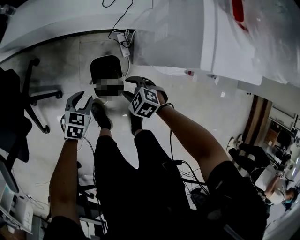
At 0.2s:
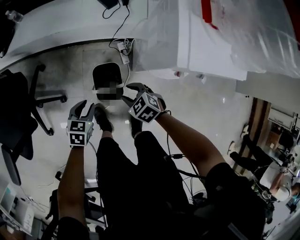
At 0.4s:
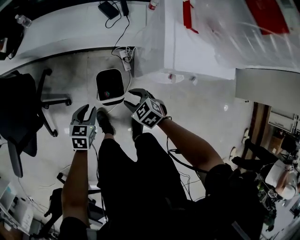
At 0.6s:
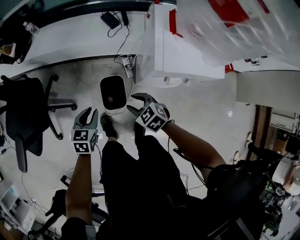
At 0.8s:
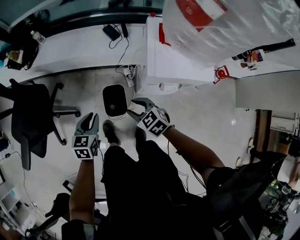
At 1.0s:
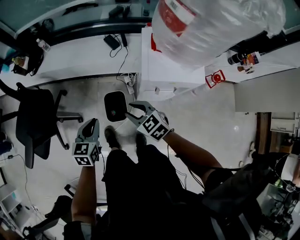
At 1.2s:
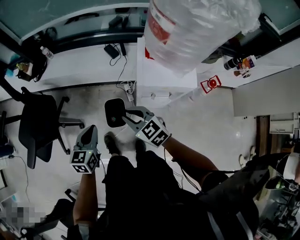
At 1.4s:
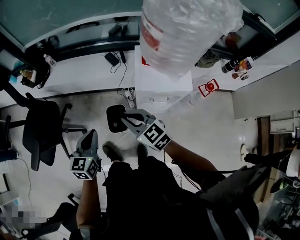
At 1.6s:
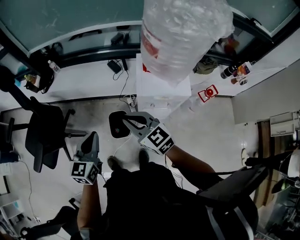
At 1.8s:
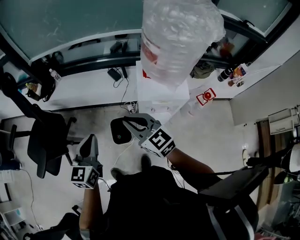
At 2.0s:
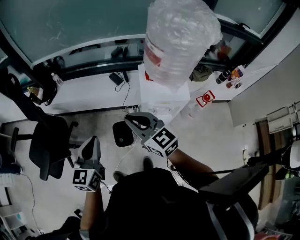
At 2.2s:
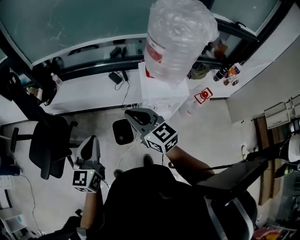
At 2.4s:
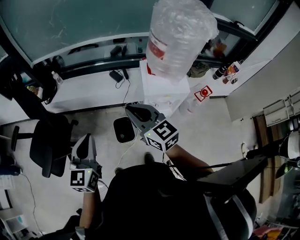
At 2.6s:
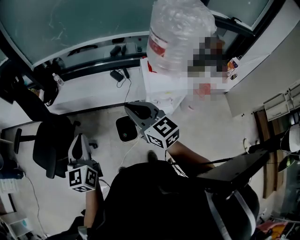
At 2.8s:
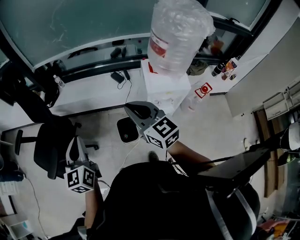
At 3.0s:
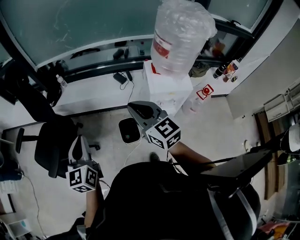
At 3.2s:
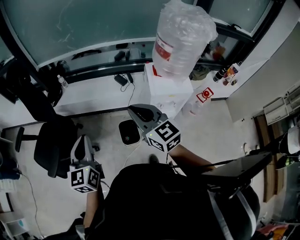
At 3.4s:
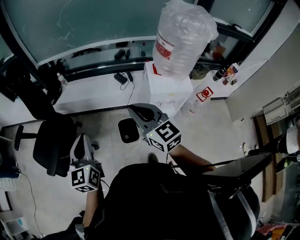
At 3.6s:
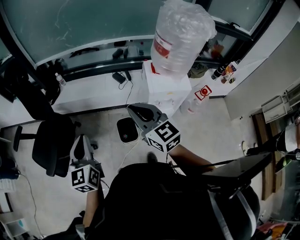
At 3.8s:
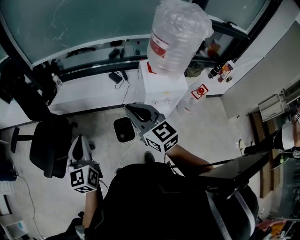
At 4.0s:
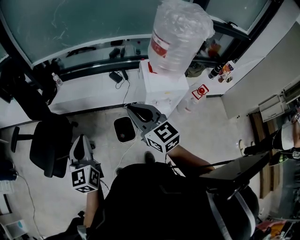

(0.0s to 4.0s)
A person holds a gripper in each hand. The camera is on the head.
0.0s - 1.4s: The grippers both shift upward by about 40 cm. The right gripper angles its fingers upward, by approximately 40 degrees, and closes; the left gripper tips its fingers upward by some 30 degrees, and closes up.
1.4s - 2.6s: Both grippers move upward and to the left, about 20 cm. The right gripper swivels roughly 20 degrees.
2.6s - 4.0s: The grippers make only small movements.

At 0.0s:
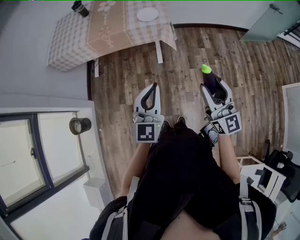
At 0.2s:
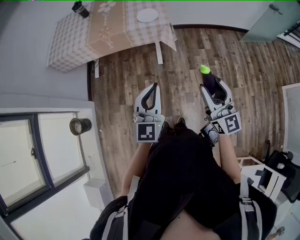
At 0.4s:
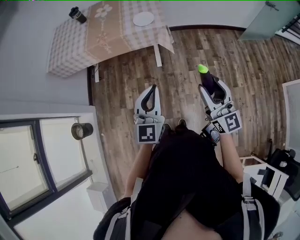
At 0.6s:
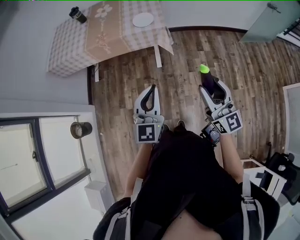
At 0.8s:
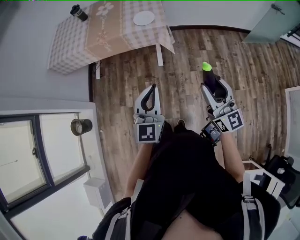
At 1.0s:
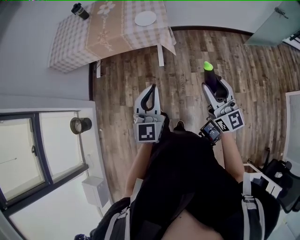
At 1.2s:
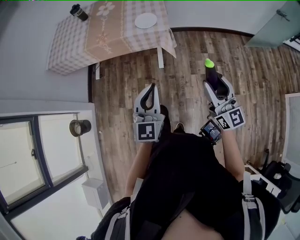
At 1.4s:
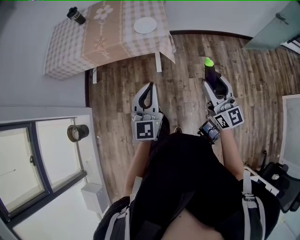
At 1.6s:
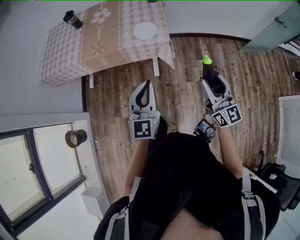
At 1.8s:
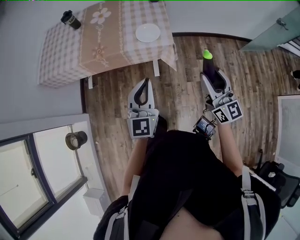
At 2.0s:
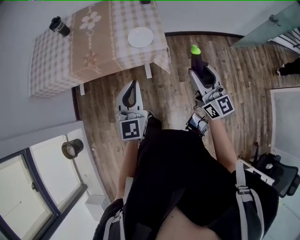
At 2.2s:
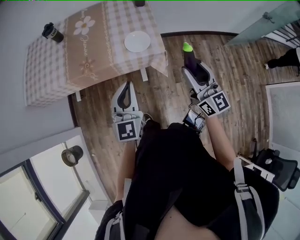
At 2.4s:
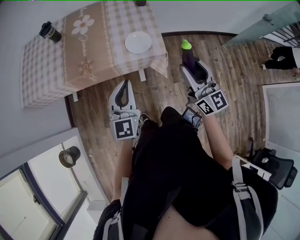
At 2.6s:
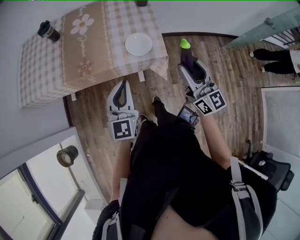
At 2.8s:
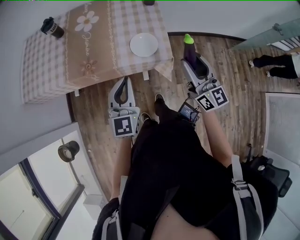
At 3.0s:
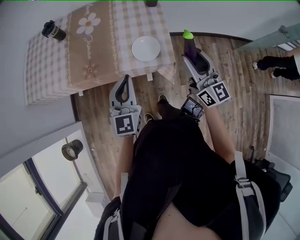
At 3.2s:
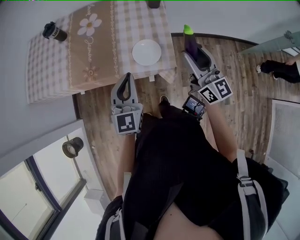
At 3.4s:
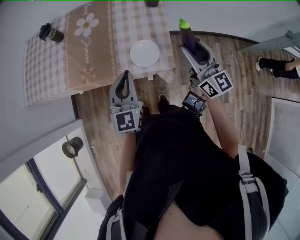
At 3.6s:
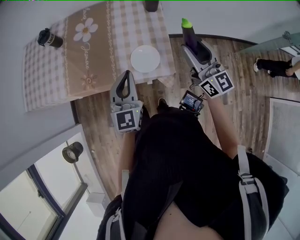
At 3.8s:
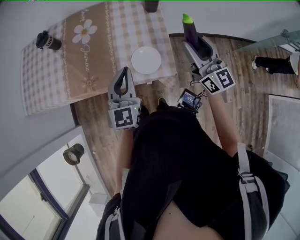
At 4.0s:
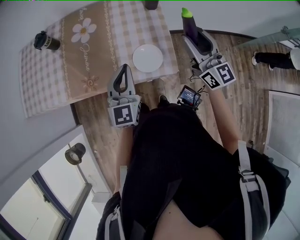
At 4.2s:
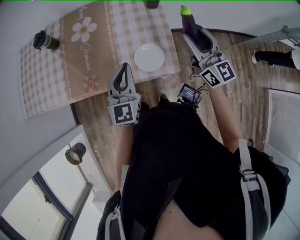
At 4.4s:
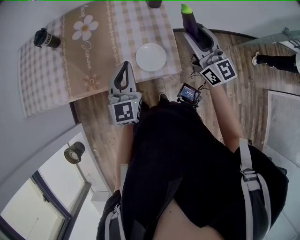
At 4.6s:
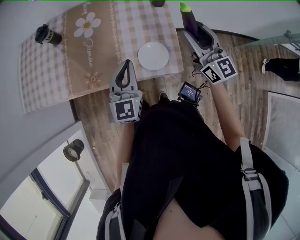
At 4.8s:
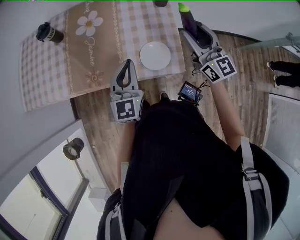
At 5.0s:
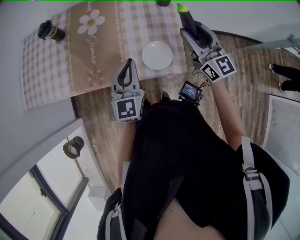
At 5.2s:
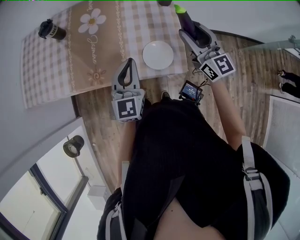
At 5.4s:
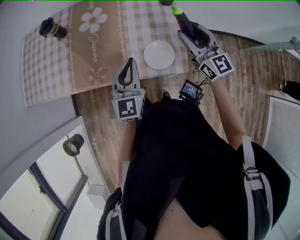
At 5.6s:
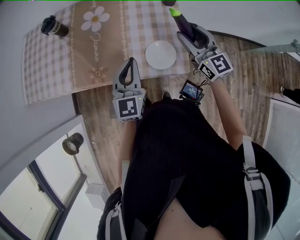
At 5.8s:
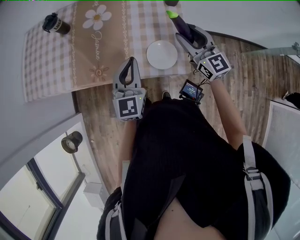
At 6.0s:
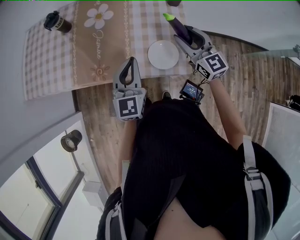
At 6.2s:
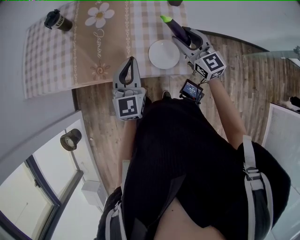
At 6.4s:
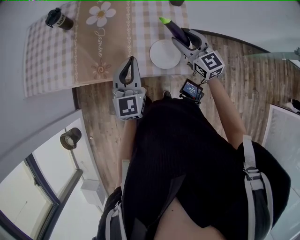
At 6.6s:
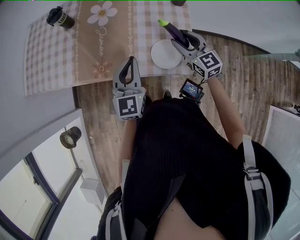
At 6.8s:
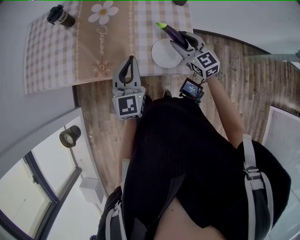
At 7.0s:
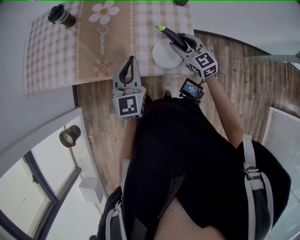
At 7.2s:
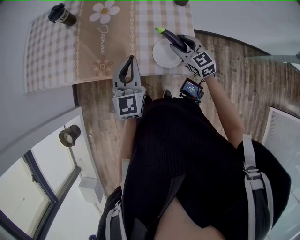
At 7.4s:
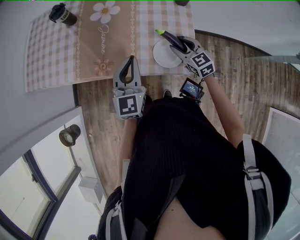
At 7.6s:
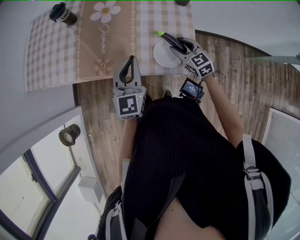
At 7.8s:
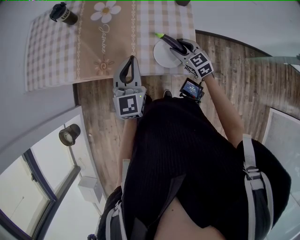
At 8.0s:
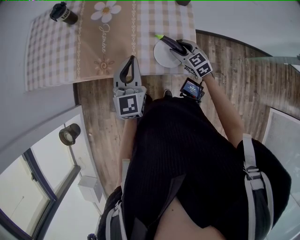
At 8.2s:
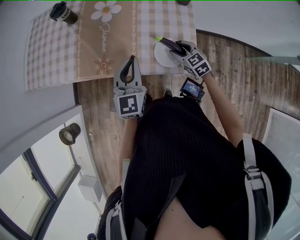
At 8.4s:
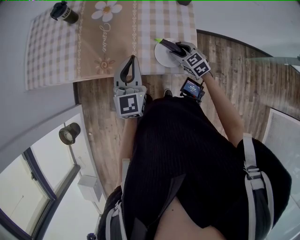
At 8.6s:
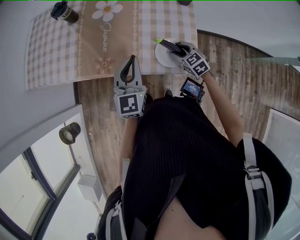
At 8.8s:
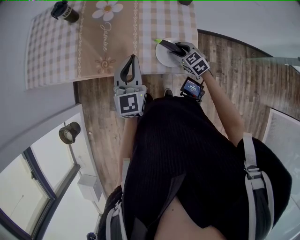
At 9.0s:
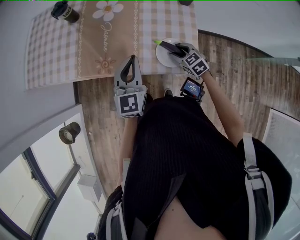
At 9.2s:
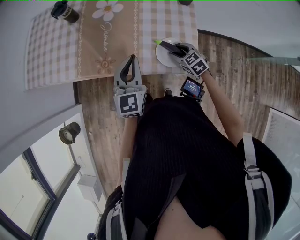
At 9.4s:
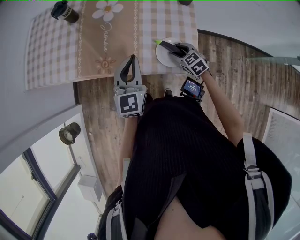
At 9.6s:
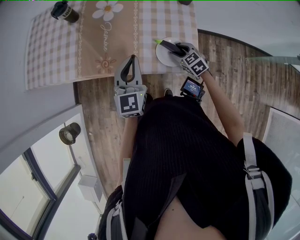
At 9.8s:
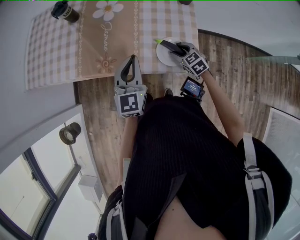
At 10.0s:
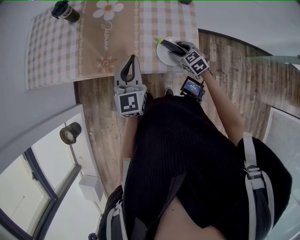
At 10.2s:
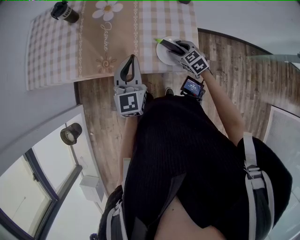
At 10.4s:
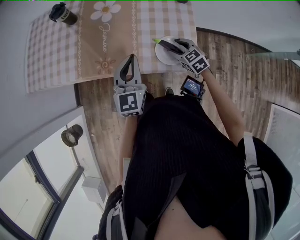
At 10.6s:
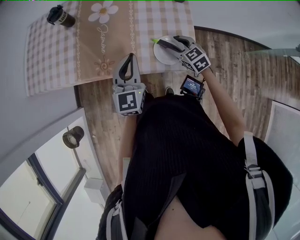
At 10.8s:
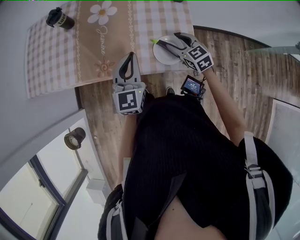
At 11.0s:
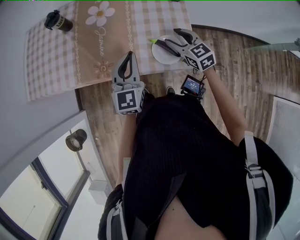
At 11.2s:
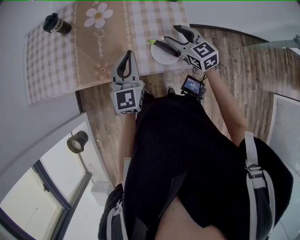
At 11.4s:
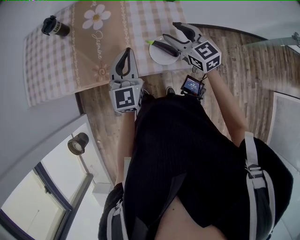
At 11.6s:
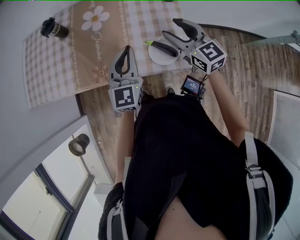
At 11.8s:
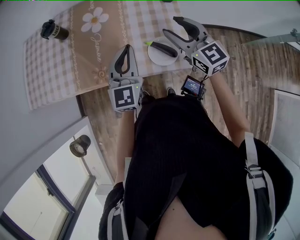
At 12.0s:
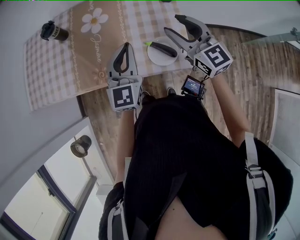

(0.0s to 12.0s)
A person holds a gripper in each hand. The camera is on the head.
0.0s - 1.6s: Both grippers travel together forward, about 20 cm.
1.6s - 3.0s: Both grippers travel together forward, some 30 cm.
3.0s - 4.4s: Both grippers move forward, about 15 cm.
4.4s - 6.0s: The right gripper shifts roughly 10 cm downward and to the left.
6.0s - 7.6s: The right gripper is displaced downward by some 15 cm, and changes its angle by about 20 degrees.
7.6s - 9.0s: The right gripper is displaced downward by about 5 cm.
9.0s - 10.4s: The grippers make only small movements.
10.4s - 12.0s: The right gripper moves upward, roughly 25 cm, and angles its fingers upward, by some 40 degrees, while the left gripper moves upward, roughly 5 cm.

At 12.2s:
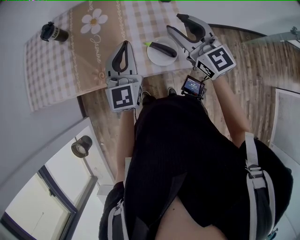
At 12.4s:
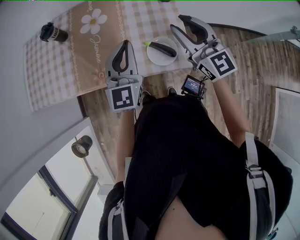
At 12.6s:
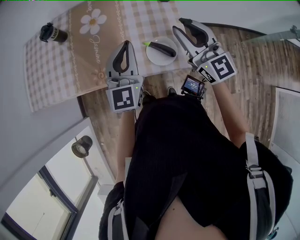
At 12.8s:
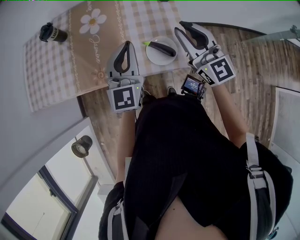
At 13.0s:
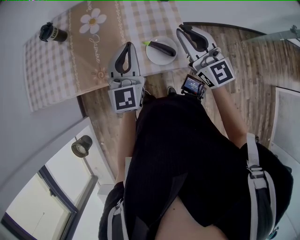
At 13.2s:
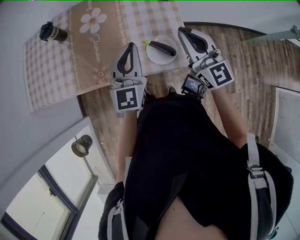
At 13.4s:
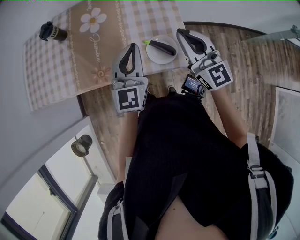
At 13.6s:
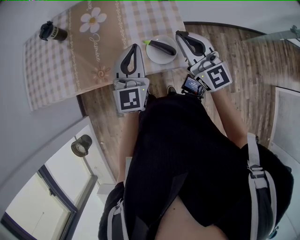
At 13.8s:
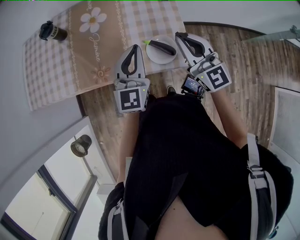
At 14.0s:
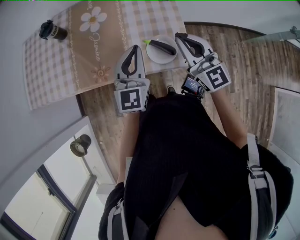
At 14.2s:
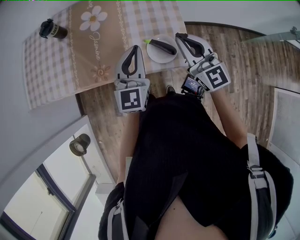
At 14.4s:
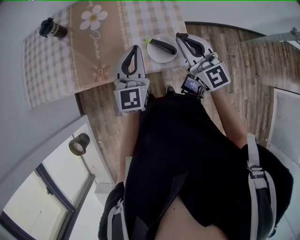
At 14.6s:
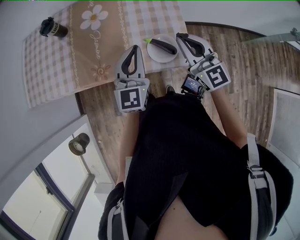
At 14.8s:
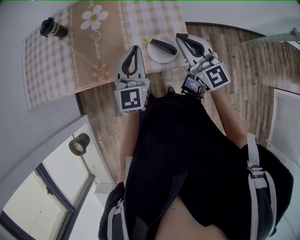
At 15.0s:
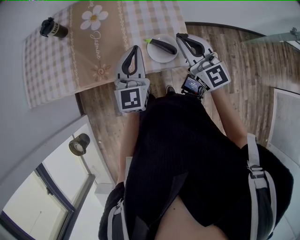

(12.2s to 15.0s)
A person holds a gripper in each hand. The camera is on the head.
12.2s - 13.6s: The right gripper closes up.
13.6s - 15.0s: The grippers make only small movements.

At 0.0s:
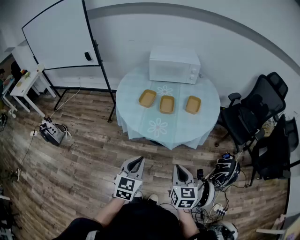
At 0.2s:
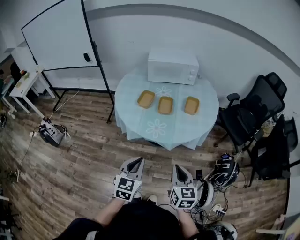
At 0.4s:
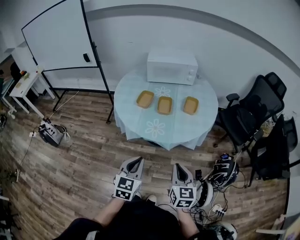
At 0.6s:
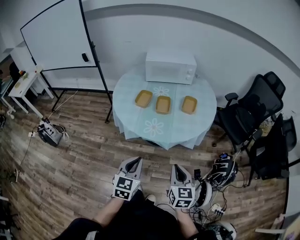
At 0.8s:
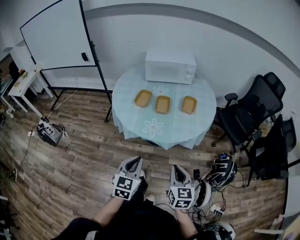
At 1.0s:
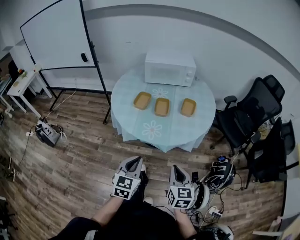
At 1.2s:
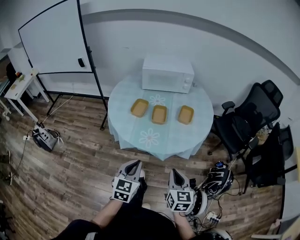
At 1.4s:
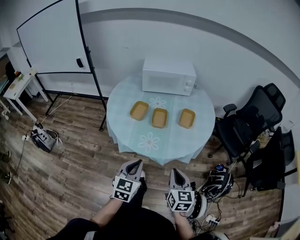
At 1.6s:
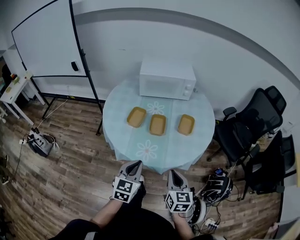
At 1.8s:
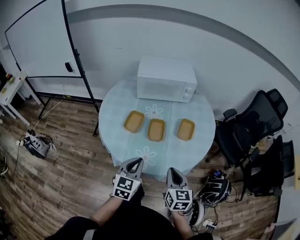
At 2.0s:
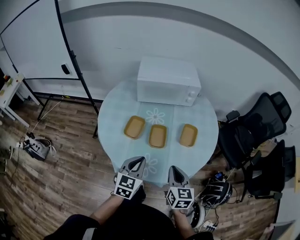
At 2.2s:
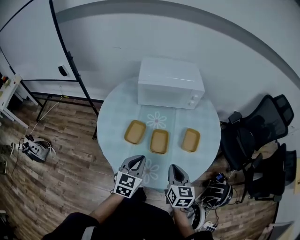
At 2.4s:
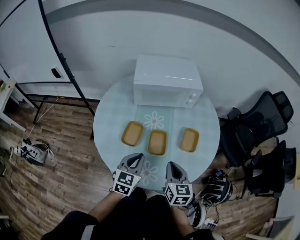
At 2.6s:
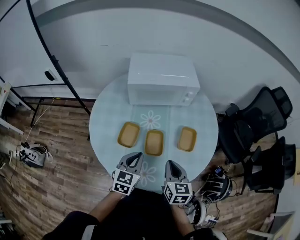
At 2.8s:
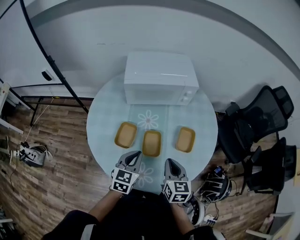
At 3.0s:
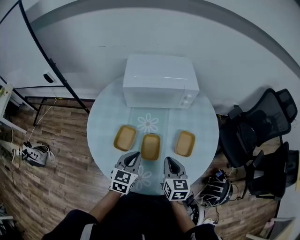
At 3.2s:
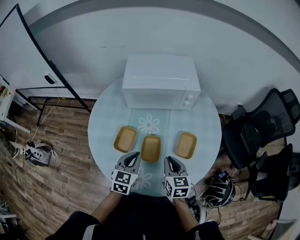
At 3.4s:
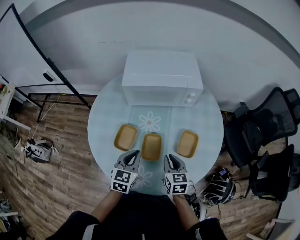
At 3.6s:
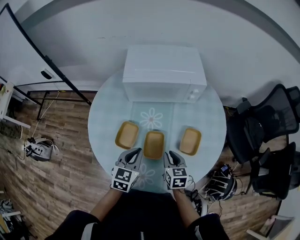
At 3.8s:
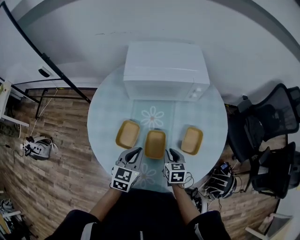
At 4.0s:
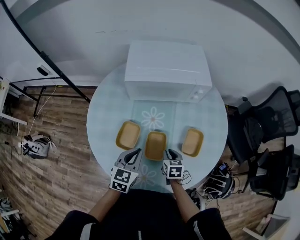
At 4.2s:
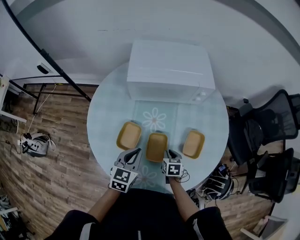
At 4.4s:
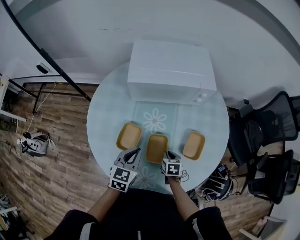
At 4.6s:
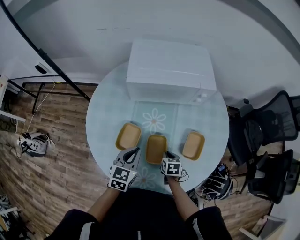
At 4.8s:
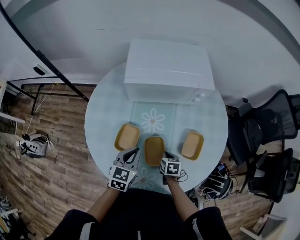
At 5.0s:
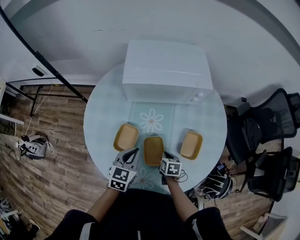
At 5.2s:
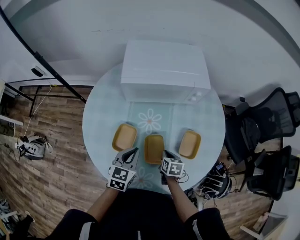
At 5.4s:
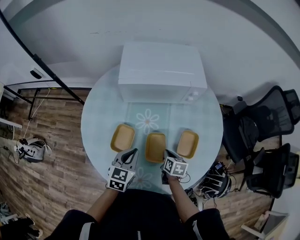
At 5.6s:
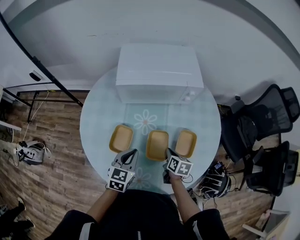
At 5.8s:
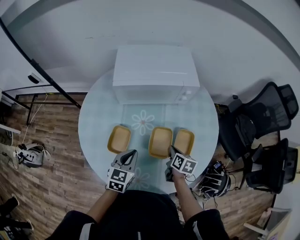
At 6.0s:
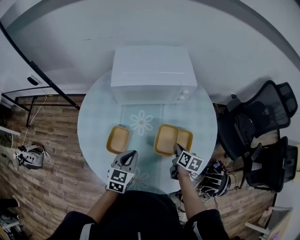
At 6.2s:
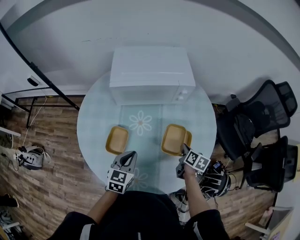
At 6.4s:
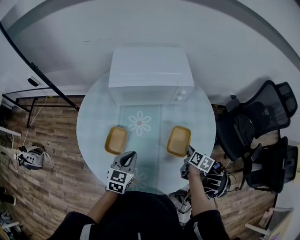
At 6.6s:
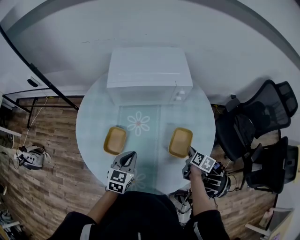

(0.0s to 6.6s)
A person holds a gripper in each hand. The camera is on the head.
0.0s - 1.6s: The grippers both shift forward by roughly 15 cm.
1.6s - 3.2s: The two grippers go roughly 30 cm forward.
3.2s - 5.0s: The left gripper goes approximately 5 cm forward; the right gripper travels downward by approximately 20 cm, and rotates approximately 30 degrees.
5.0s - 6.6s: The right gripper moves to the right, roughly 20 cm, and rotates some 30 degrees; the left gripper moves to the right, about 5 cm.
